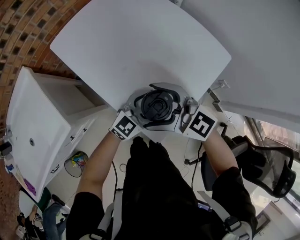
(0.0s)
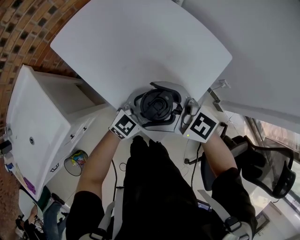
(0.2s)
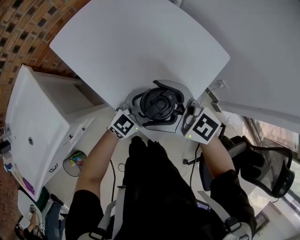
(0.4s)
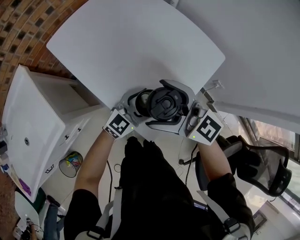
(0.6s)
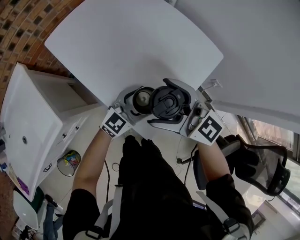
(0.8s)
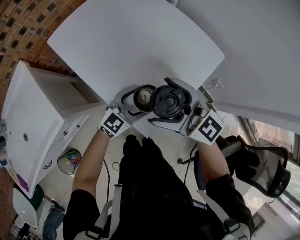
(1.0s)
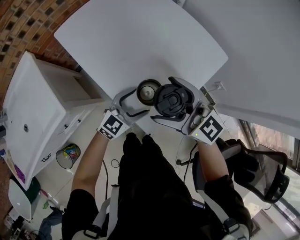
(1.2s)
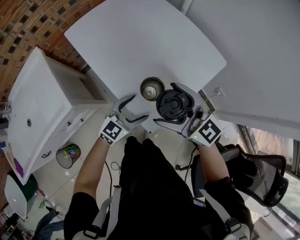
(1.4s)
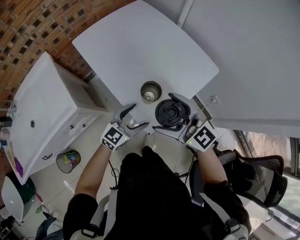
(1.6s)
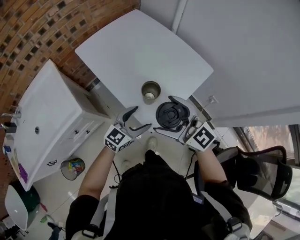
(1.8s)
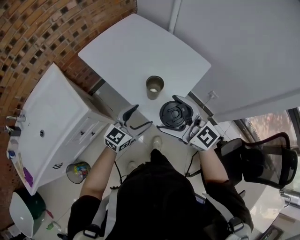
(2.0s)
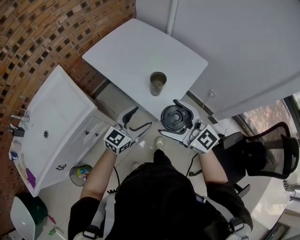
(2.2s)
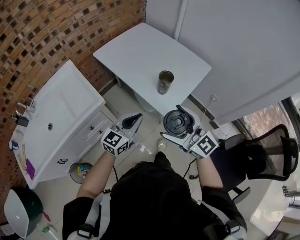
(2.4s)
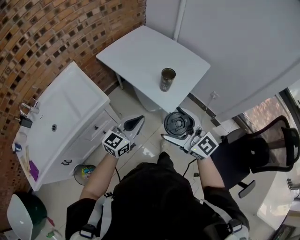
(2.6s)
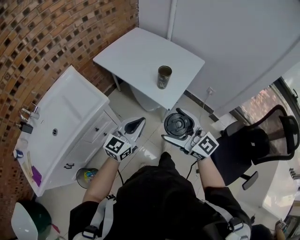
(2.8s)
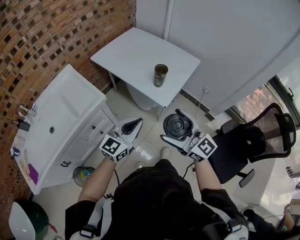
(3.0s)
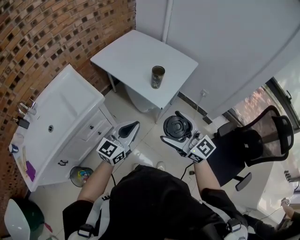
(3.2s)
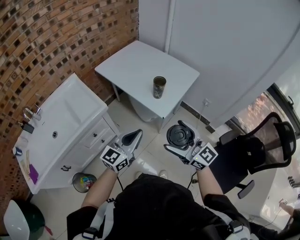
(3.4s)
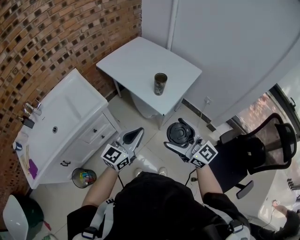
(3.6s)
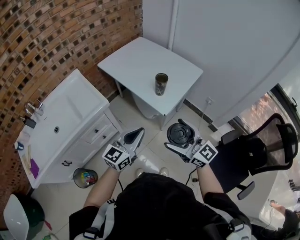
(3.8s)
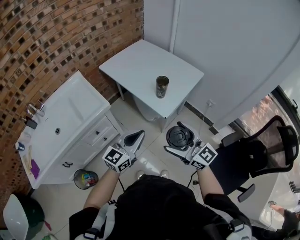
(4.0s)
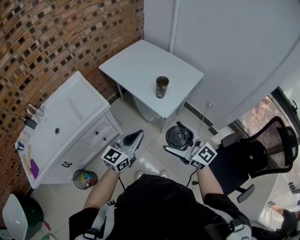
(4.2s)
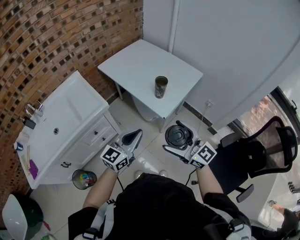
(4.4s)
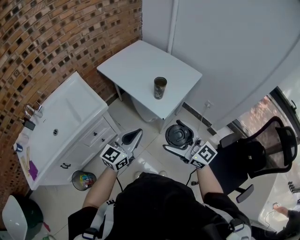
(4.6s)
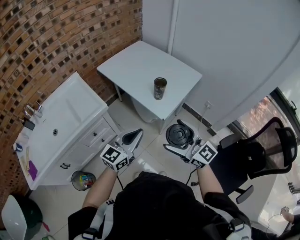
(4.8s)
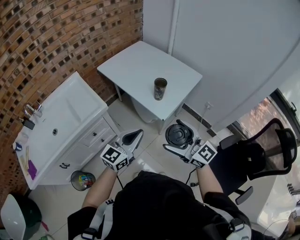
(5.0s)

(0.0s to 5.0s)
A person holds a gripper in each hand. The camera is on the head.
0.0s - 1.6s: The left gripper moves roughly 10 cm. Meanwhile the right gripper changes place by approximately 10 cm.
1.6s - 3.4s: The left gripper moves backward, upward and to the left, about 35 cm, changes its angle by roughly 20 degrees, and closes its fingers. The right gripper goes about 30 cm backward.
3.4s - 5.0s: There are only small adjustments of the grippers.

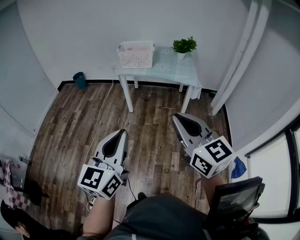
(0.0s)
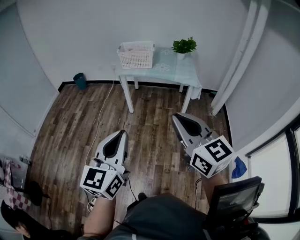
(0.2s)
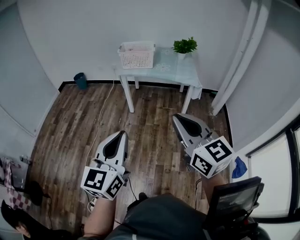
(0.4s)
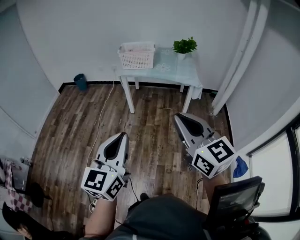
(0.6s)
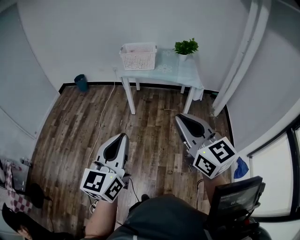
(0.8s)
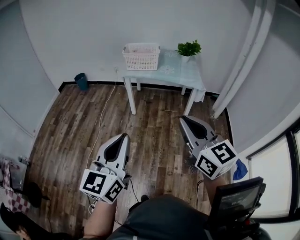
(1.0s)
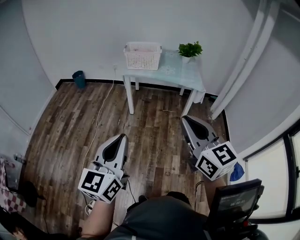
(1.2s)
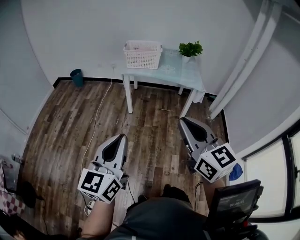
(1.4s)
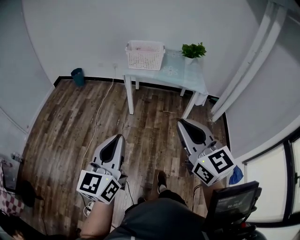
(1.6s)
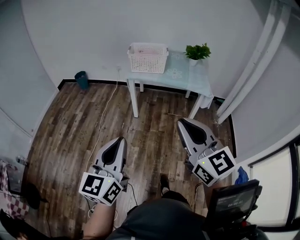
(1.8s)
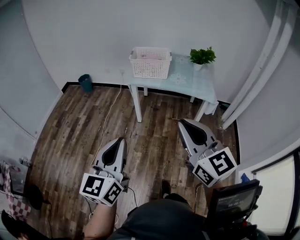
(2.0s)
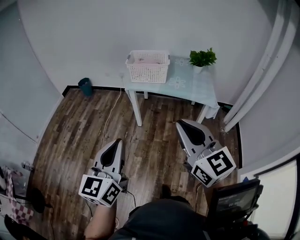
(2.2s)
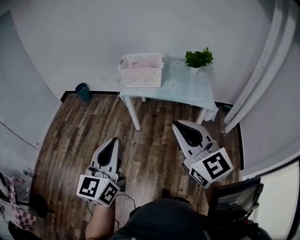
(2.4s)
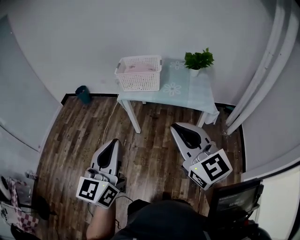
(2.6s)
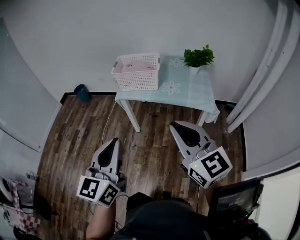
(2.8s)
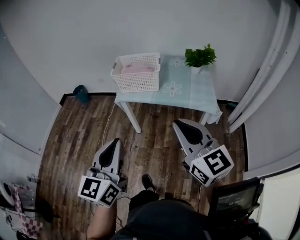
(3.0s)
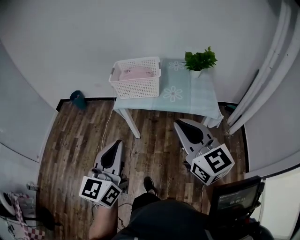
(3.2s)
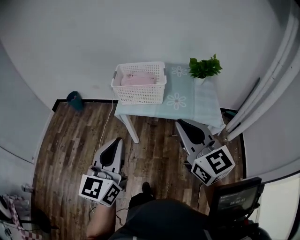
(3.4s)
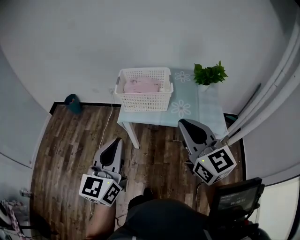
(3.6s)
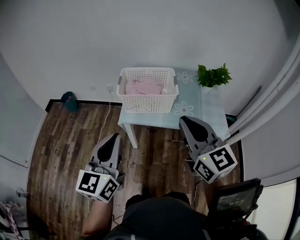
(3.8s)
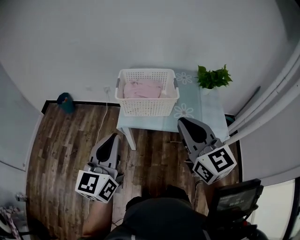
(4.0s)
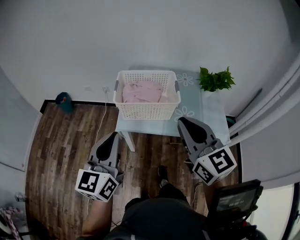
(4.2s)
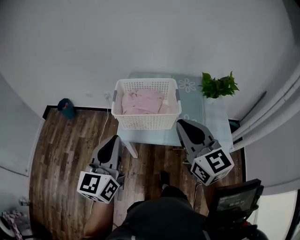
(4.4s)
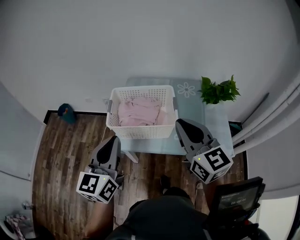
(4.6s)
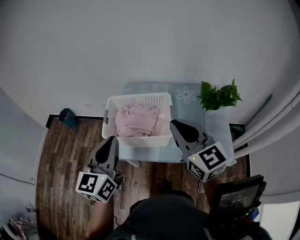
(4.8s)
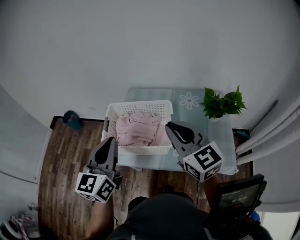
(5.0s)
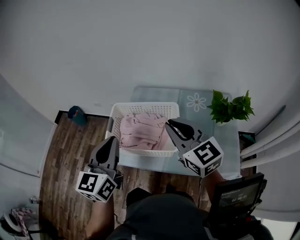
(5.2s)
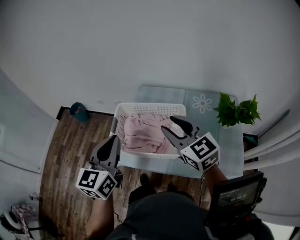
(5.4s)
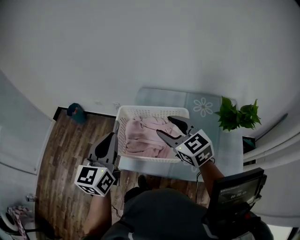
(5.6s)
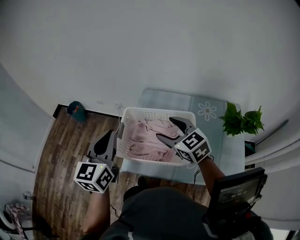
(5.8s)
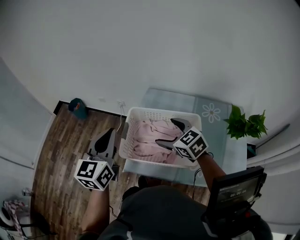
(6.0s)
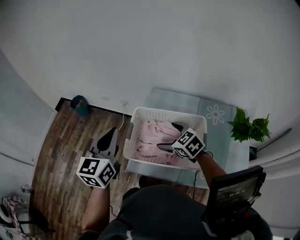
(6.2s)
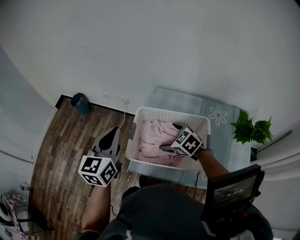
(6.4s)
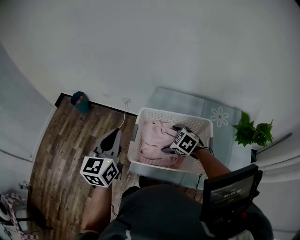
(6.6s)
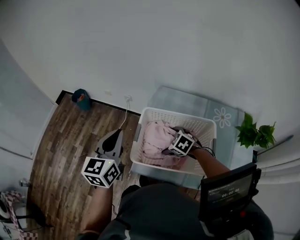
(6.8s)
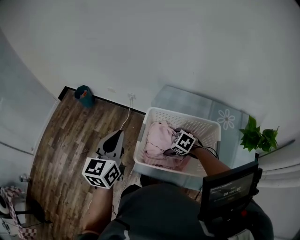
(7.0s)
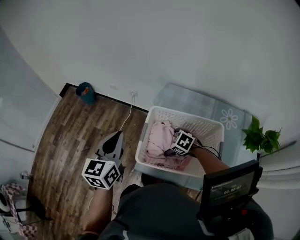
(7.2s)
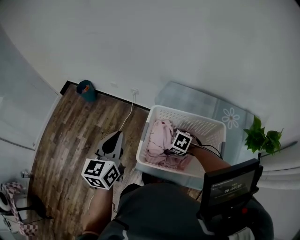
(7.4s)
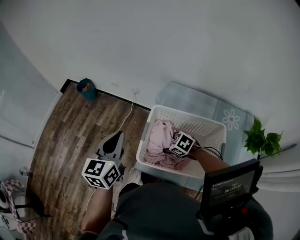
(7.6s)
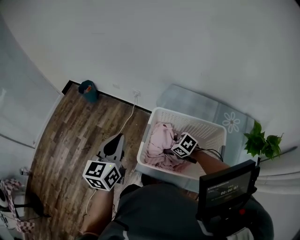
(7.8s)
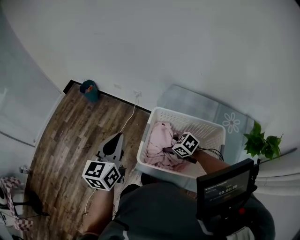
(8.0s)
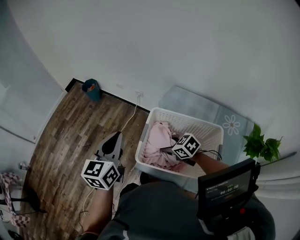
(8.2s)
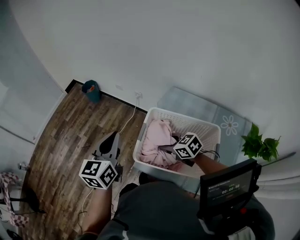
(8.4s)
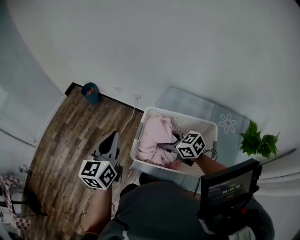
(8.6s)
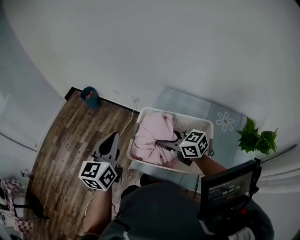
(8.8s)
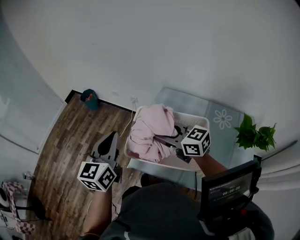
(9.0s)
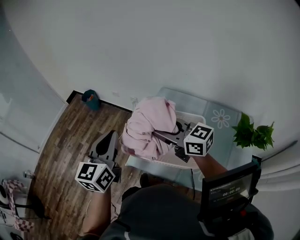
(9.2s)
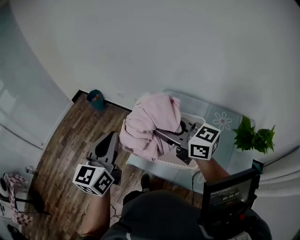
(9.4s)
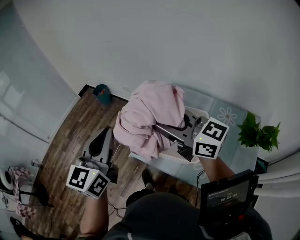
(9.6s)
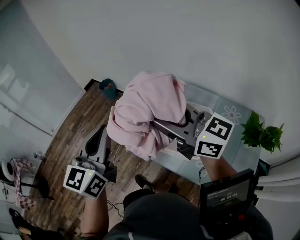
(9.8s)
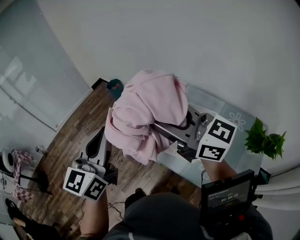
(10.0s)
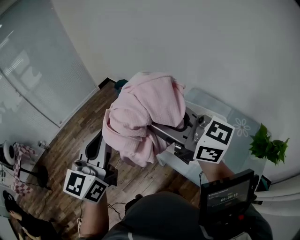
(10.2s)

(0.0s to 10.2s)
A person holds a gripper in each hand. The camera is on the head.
0.0s - 1.4s: The two grippers go approximately 10 cm to the left.
1.4s - 3.0s: Both grippers travel together forward and to the right, approximately 35 cm.
3.0s - 4.4s: The two grippers go about 35 cm forward.
4.4s - 5.8s: The left gripper travels forward by roughly 25 cm. The right gripper goes about 30 cm forward and downward, swivels some 30 degrees, and opens up.
5.8s - 7.2s: The left gripper heads downward, forward and to the left, covering some 15 cm. Meanwhile the right gripper shifts some 25 cm downward, points its fingers roughly 40 degrees further downward, and opens.
7.2s - 8.8s: The right gripper heads upward, covering roughly 20 cm, tips its fingers upward by approximately 40 degrees, and closes its fingers, while the left gripper changes place by roughly 5 cm.
8.8s - 10.2s: The left gripper is displaced backward, upward and to the left by approximately 25 cm, and changes its angle by roughly 20 degrees; the right gripper heads upward and backward, covering roughly 30 cm, and points its fingers approximately 30 degrees further upward.

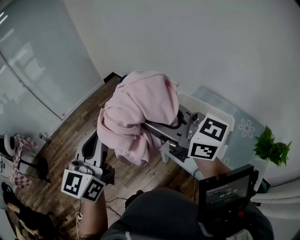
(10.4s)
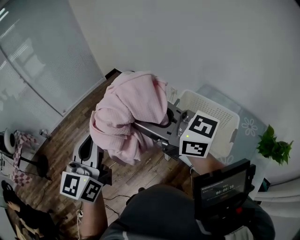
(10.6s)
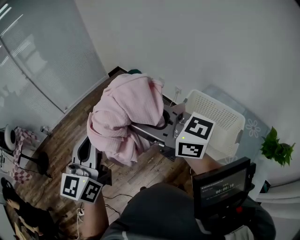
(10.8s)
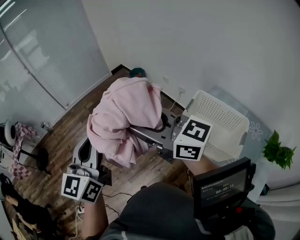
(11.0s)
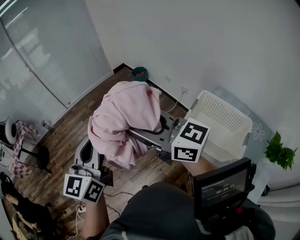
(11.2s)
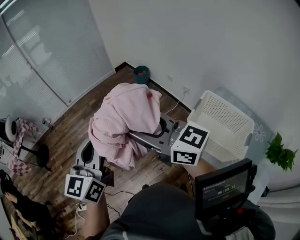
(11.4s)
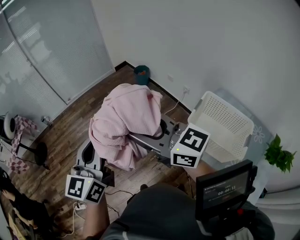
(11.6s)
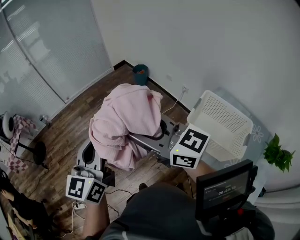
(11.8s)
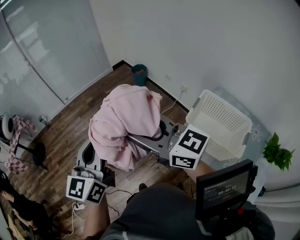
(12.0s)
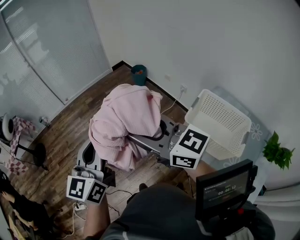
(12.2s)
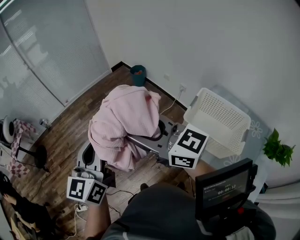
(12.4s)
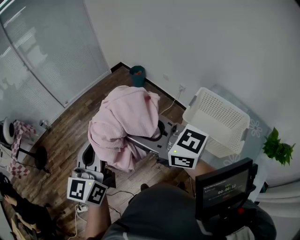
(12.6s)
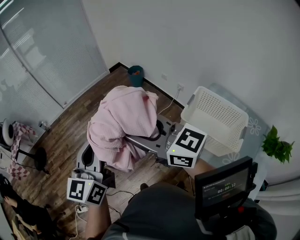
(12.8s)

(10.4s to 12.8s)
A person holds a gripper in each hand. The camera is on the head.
10.4s - 11.6s: Both grippers move to the left, about 20 cm.
11.6s - 12.8s: Both grippers stay put.

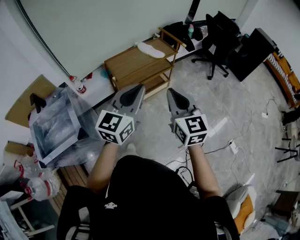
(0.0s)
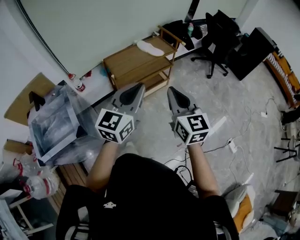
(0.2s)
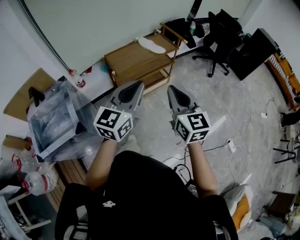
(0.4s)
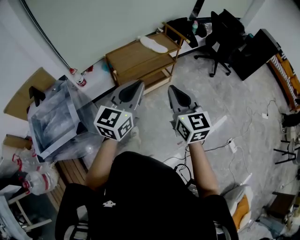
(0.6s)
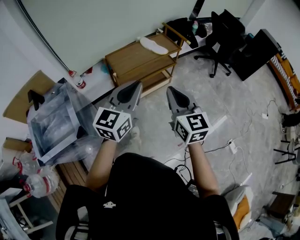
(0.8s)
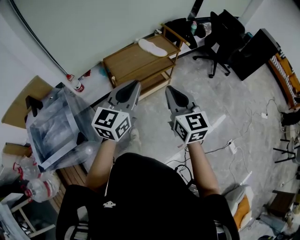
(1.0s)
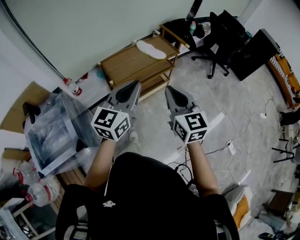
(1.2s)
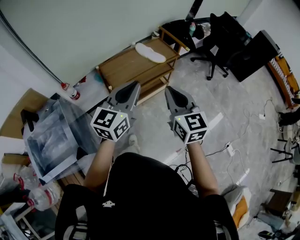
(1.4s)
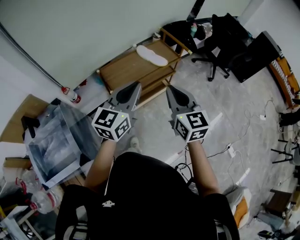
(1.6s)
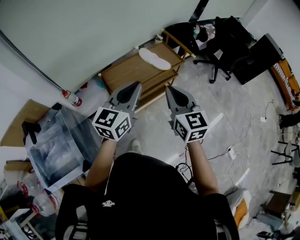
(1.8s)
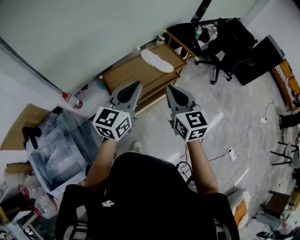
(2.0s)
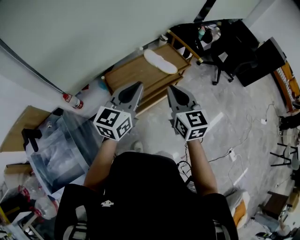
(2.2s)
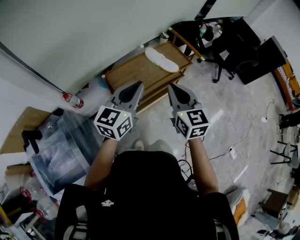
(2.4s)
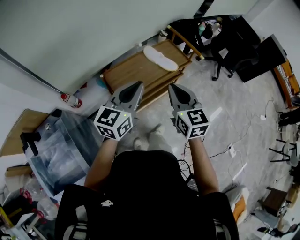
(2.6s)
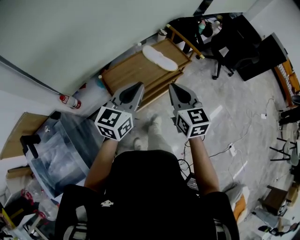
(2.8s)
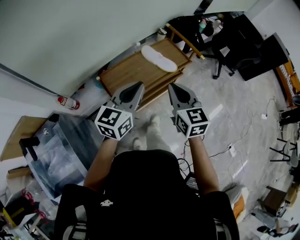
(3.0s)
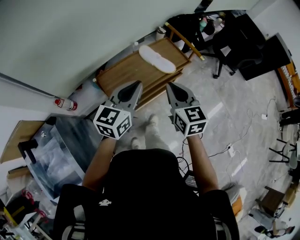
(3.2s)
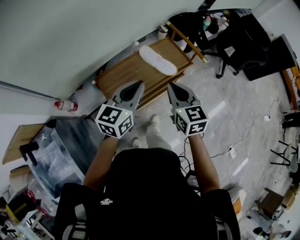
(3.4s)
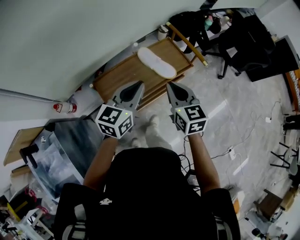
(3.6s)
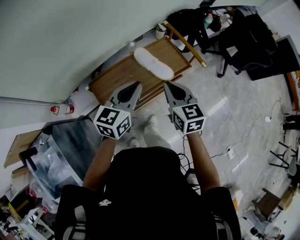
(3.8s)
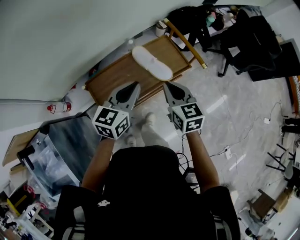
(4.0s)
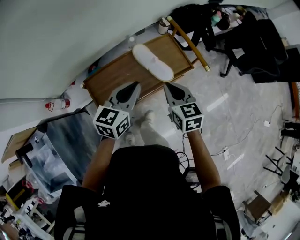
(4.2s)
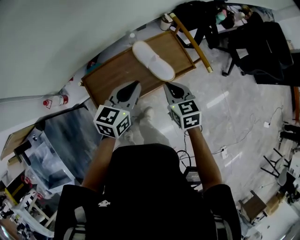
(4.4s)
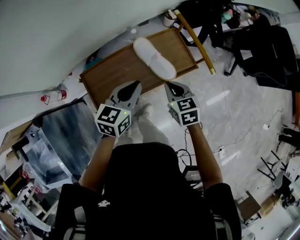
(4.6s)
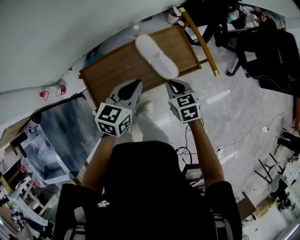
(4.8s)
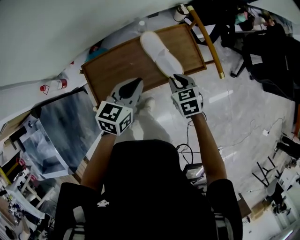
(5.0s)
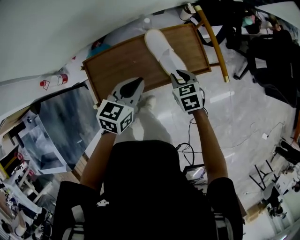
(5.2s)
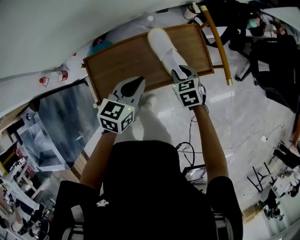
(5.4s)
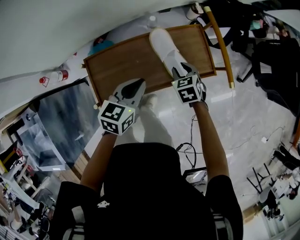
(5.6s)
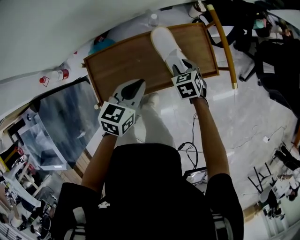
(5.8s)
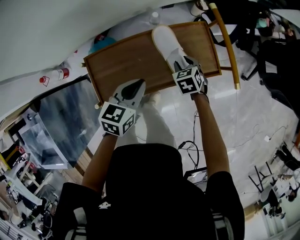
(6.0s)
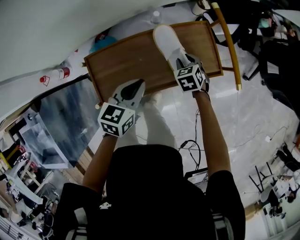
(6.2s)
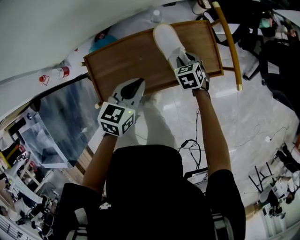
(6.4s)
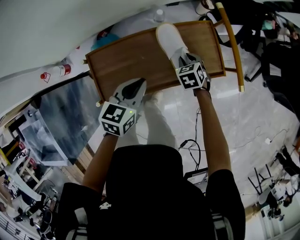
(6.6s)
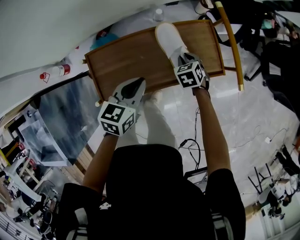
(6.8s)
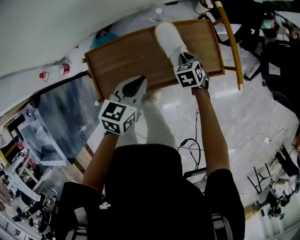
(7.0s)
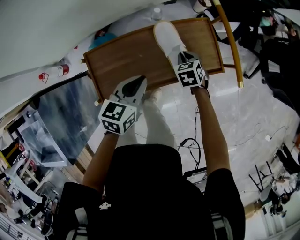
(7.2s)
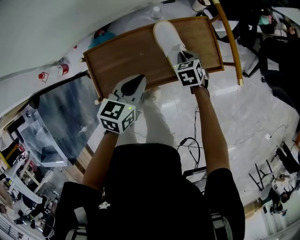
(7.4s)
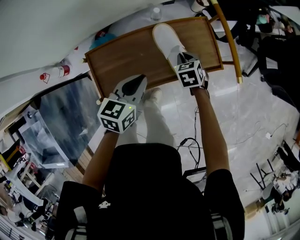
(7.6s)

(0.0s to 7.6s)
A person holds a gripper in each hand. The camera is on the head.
0.0s - 1.6s: Both grippers travel together forward, some 20 cm.
1.6s - 3.0s: Both grippers move forward and downward, about 15 cm.
3.0s - 4.6s: The left gripper is displaced forward, downward and to the right by some 25 cm, and changes its angle by some 20 degrees; the right gripper shifts some 30 cm downward and forward, and rotates some 30 degrees.
4.6s - 6.0s: The left gripper travels downward by some 10 cm. Meanwhile the right gripper shifts approximately 20 cm downward and forward, swivels about 30 degrees, and opens up.
6.0s - 7.6s: The right gripper closes.
